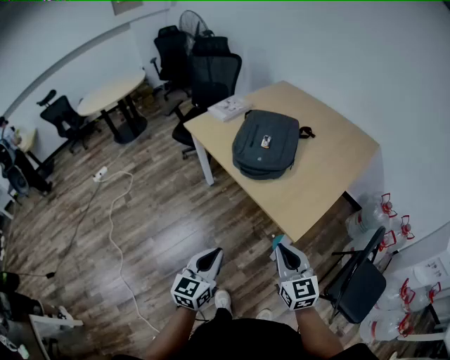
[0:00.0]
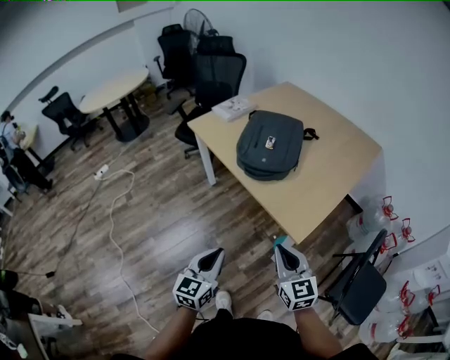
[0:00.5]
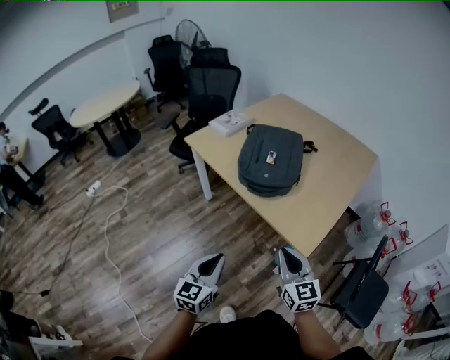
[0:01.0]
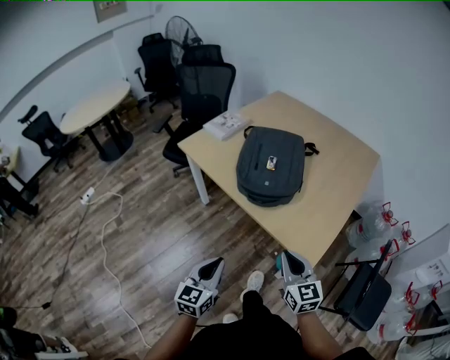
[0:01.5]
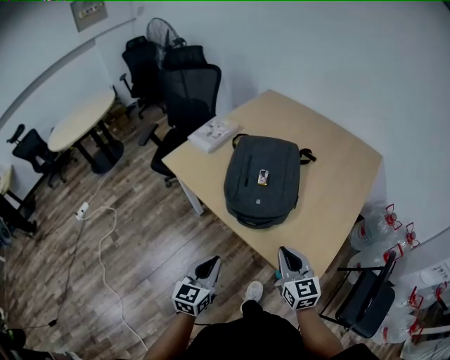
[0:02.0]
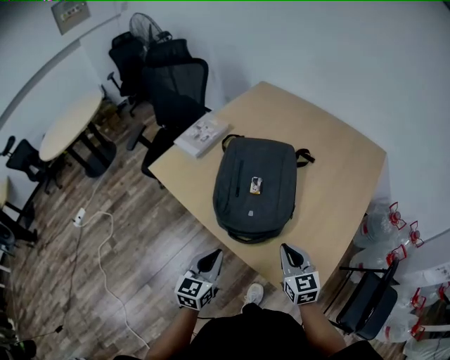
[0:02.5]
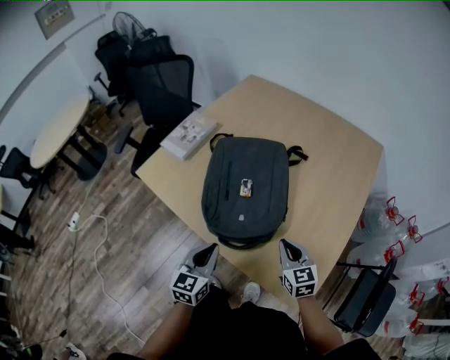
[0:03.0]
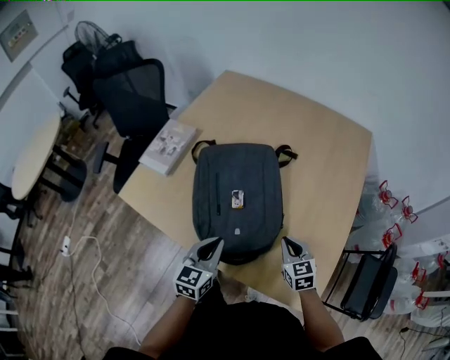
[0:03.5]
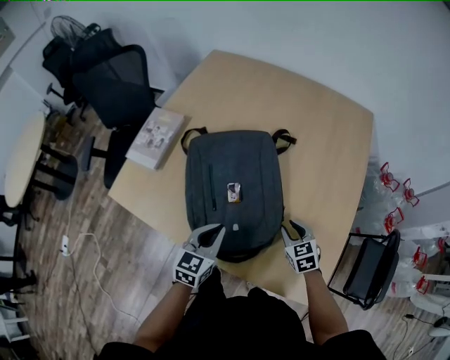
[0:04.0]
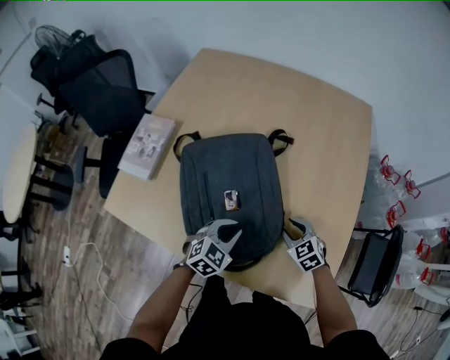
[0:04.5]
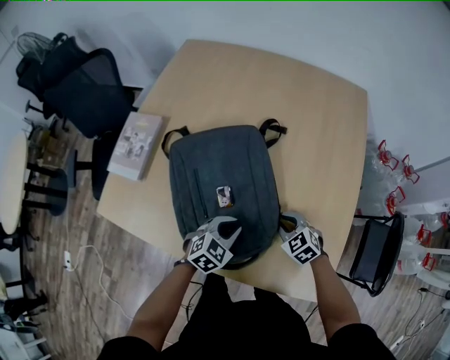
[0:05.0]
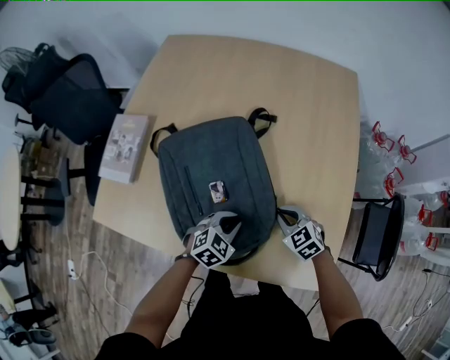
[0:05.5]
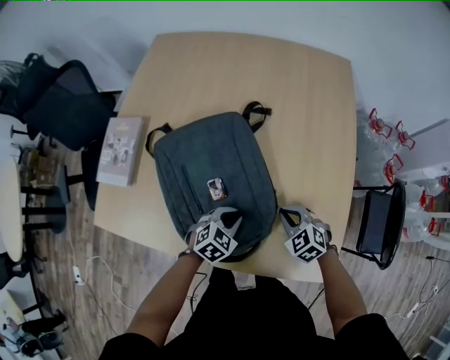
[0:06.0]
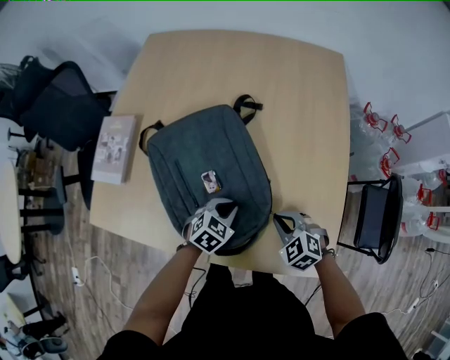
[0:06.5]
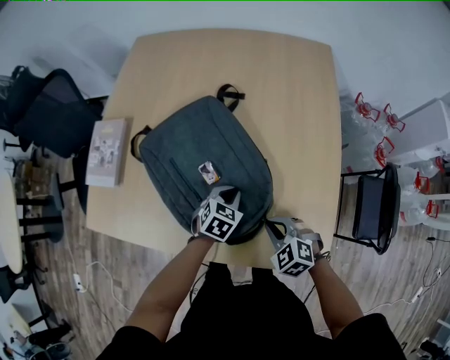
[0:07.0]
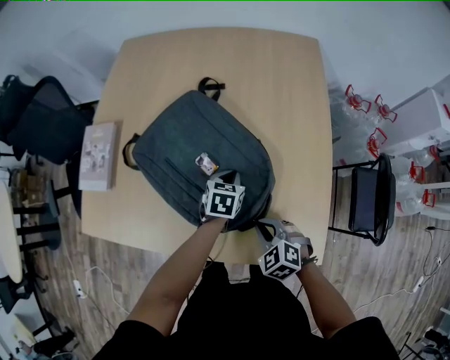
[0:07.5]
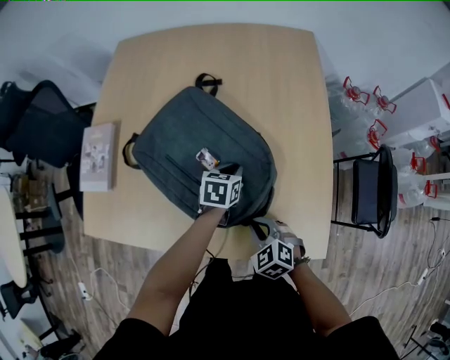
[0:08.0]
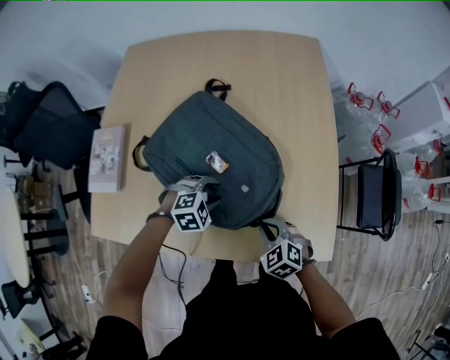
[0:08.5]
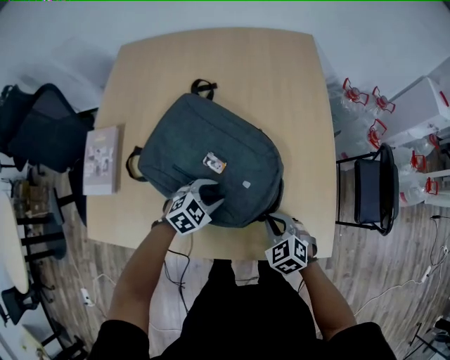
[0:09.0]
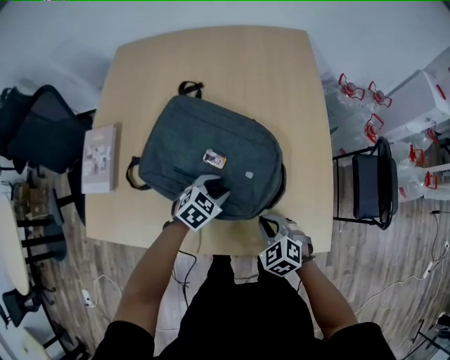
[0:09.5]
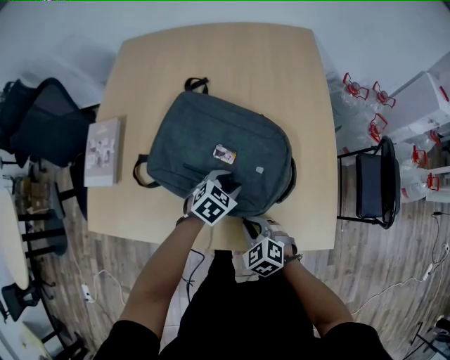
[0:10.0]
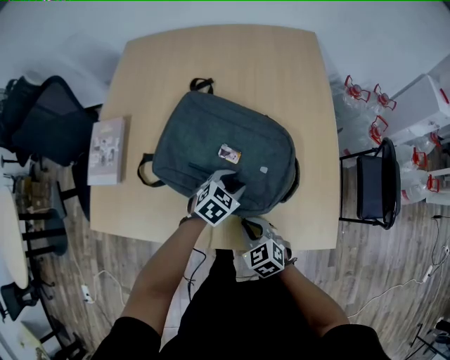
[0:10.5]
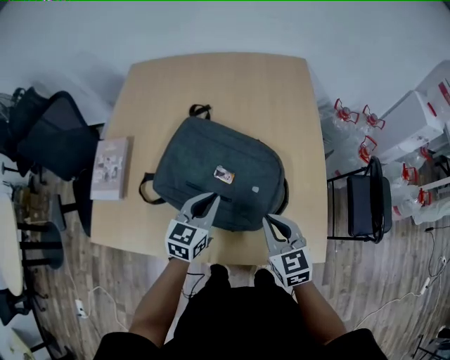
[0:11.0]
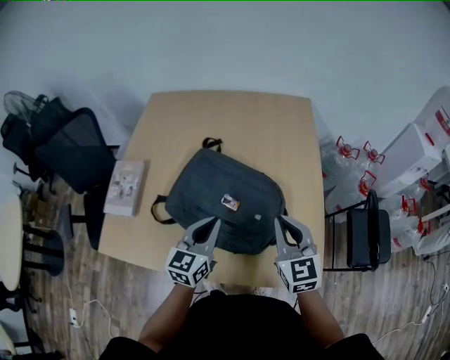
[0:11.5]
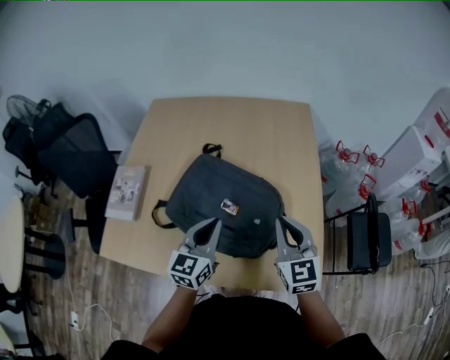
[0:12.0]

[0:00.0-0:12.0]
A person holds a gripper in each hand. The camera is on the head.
0:00.0 to 0:02.0: The grippers both shift forward by roughly 25 cm.
0:02.0 to 0:04.0: The right gripper travels forward and downward by about 25 cm, tilts its fingers some 30 degrees downward, and opens. The left gripper travels forward by some 30 cm, and turns by roughly 30 degrees.
0:04.0 to 0:06.0: The right gripper closes up. Meanwhile the left gripper is displaced downward and to the right by roughly 15 cm, and swivels approximately 50 degrees.
0:06.0 to 0:08.0: The right gripper travels backward by about 10 cm, while the left gripper travels forward and to the right by some 10 cm, and swivels approximately 30 degrees.
0:08.0 to 0:10.0: The left gripper goes some 10 cm backward, rotates roughly 40 degrees, and opens its fingers; the right gripper shifts by approximately 5 cm.
0:10.0 to 0:12.0: The right gripper travels upward and forward by approximately 30 cm, and points its fingers some 40 degrees further upward; the left gripper moves upward, approximately 20 cm, tips its fingers upward by roughly 40 degrees, and closes up.

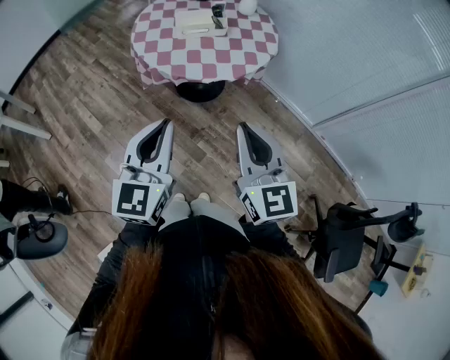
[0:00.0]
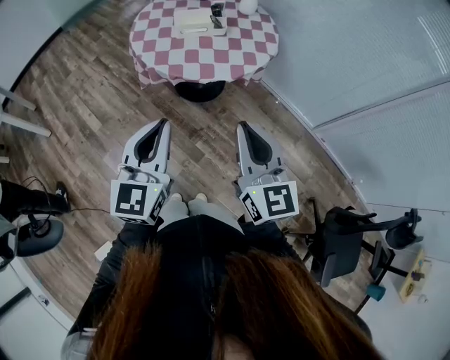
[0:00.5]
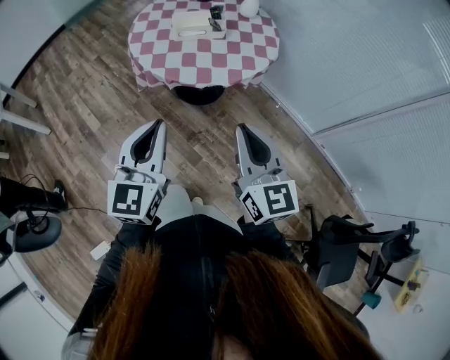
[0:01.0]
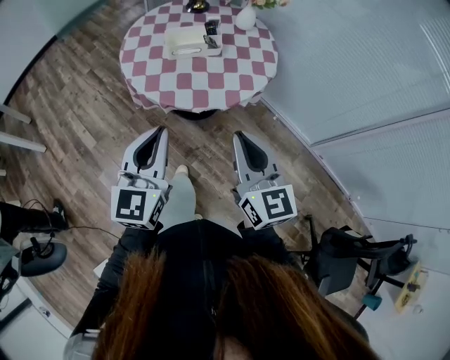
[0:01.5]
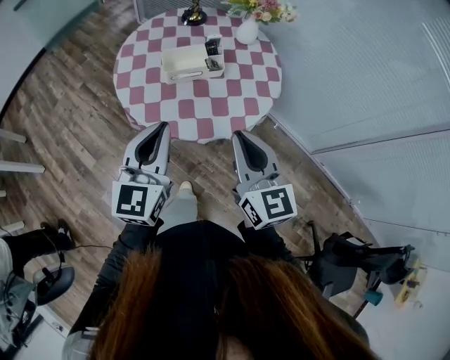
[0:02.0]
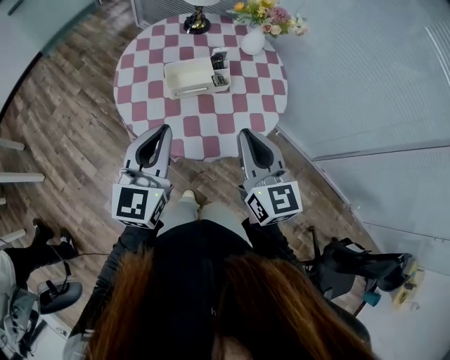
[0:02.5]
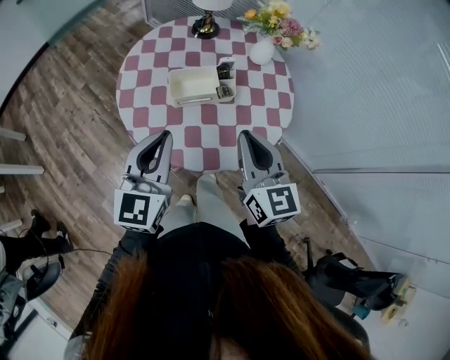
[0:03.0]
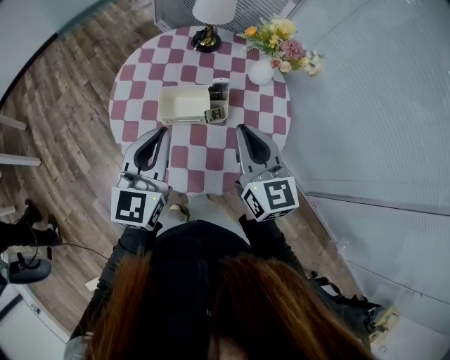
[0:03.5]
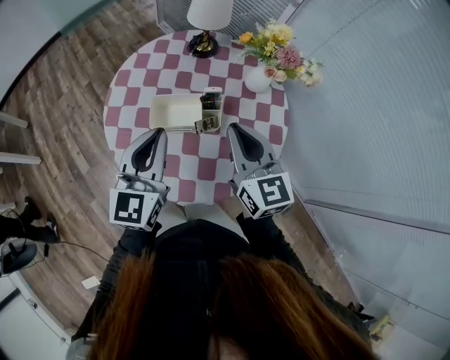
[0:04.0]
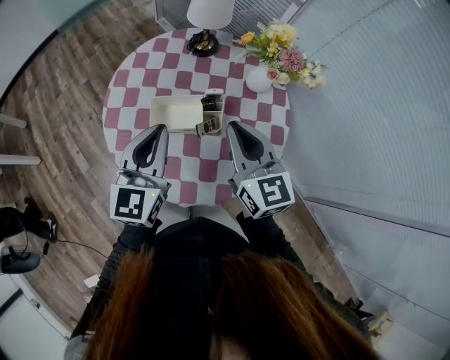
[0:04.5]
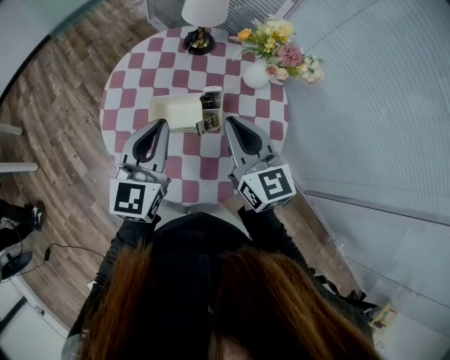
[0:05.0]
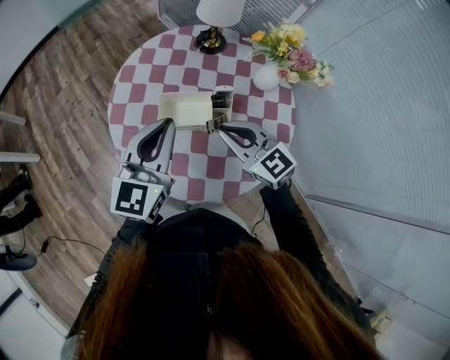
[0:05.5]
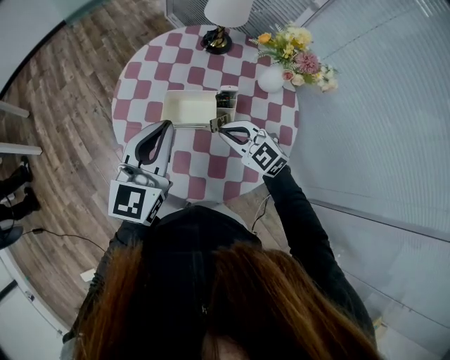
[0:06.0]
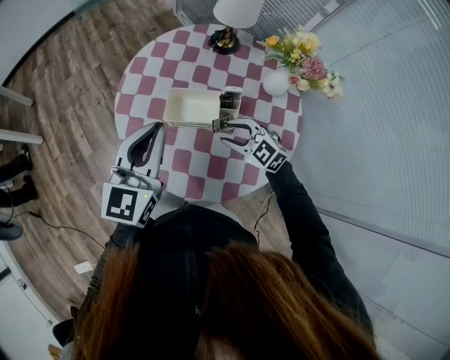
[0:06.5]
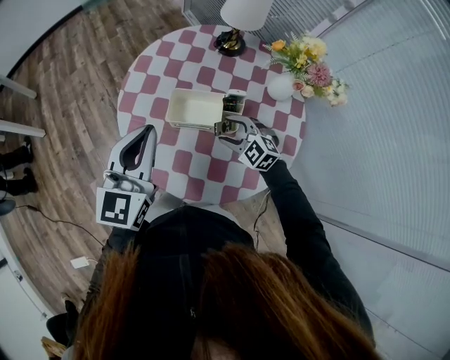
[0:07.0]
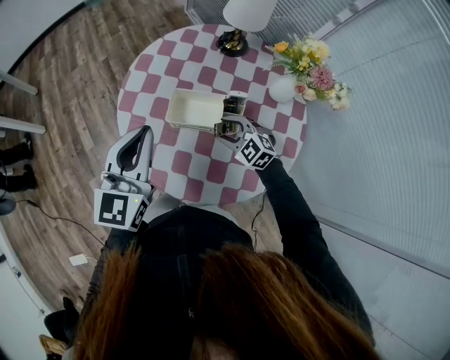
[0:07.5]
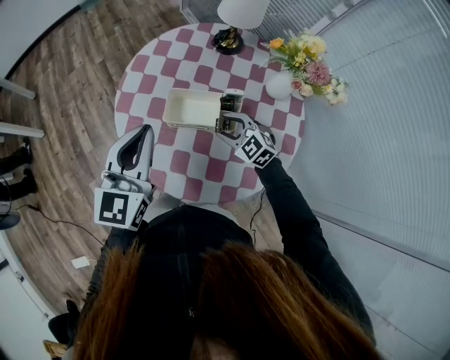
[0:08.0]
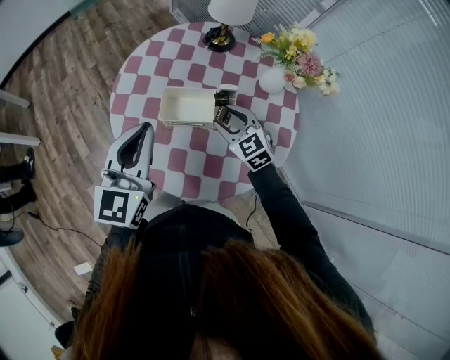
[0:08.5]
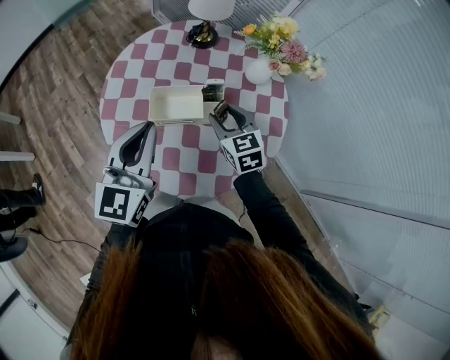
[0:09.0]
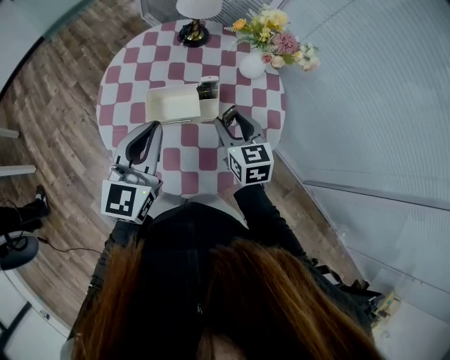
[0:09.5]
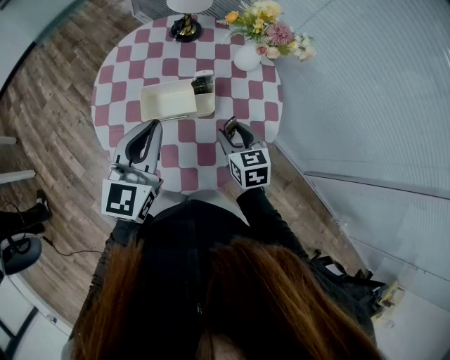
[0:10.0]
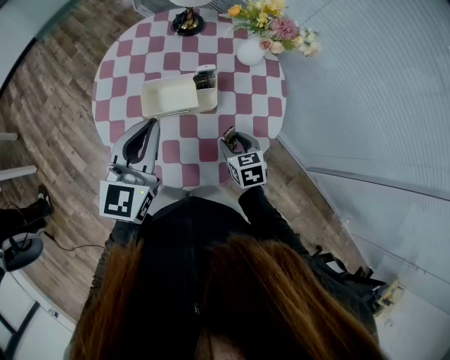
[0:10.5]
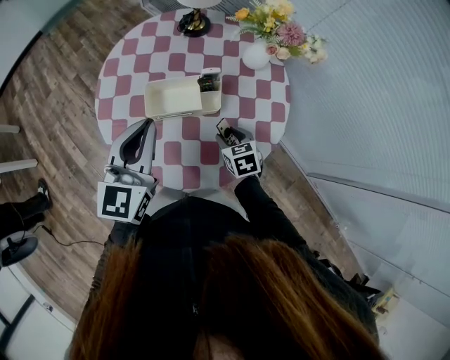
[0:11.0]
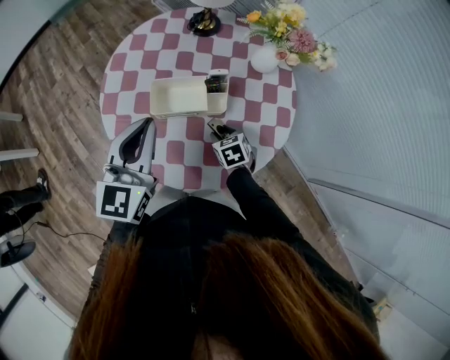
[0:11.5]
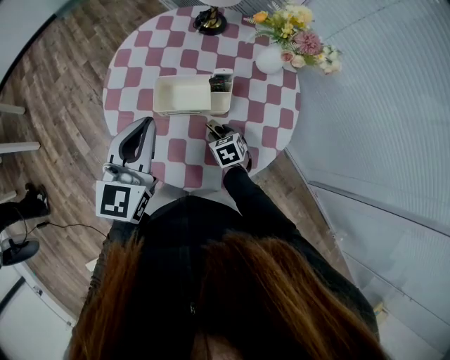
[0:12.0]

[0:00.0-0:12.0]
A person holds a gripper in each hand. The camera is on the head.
0:00.0 to 0:02.0: The two grippers go about 25 cm forward.
0:02.0 to 0:04.0: The two grippers go roughly 25 cm forward.
0:04.0 to 0:06.0: The right gripper heads downward, covering some 15 cm, and changes its angle by about 50 degrees.
0:06.0 to 0:08.0: The right gripper is displaced downward by approximately 5 cm, and opens.
0:08.0 to 0:10.0: The left gripper moves roughly 5 cm; the right gripper moves some 10 cm, and twists about 50 degrees clockwise, seen from behind.
0:10.0 to 0:12.0: The right gripper heads downward, covering approximately 15 cm, and rotates approximately 30 degrees.

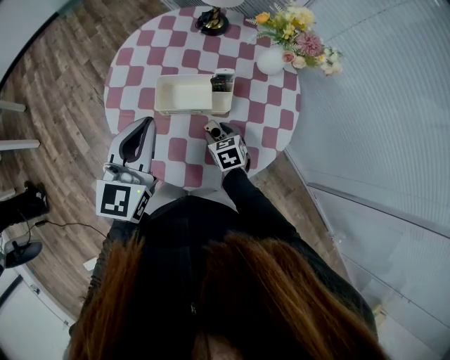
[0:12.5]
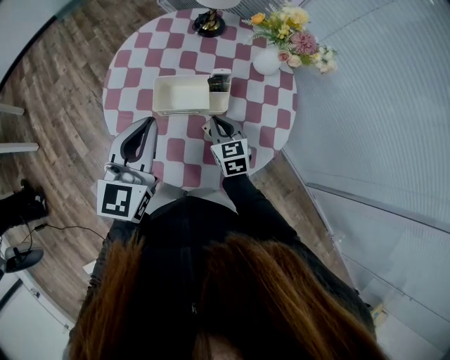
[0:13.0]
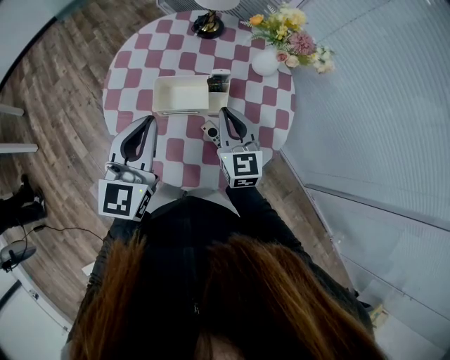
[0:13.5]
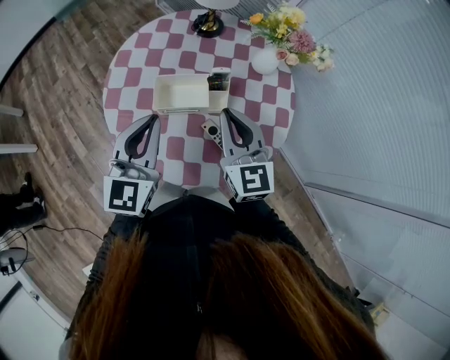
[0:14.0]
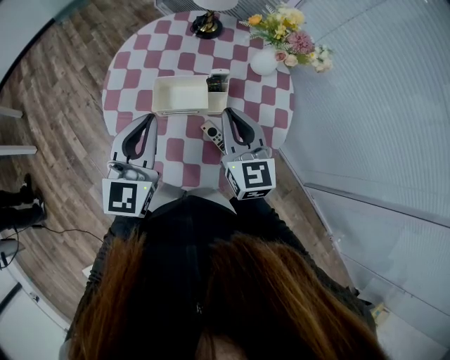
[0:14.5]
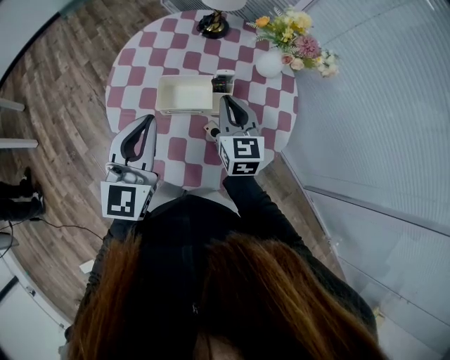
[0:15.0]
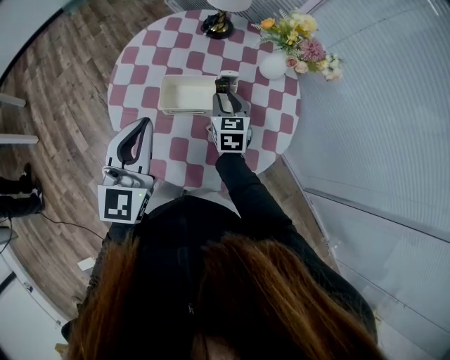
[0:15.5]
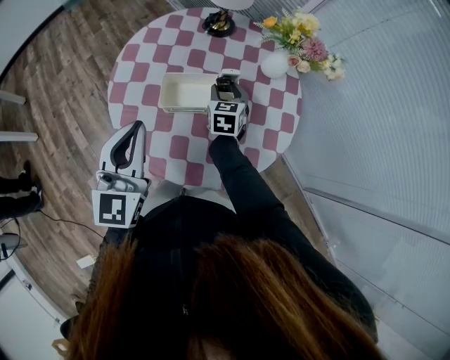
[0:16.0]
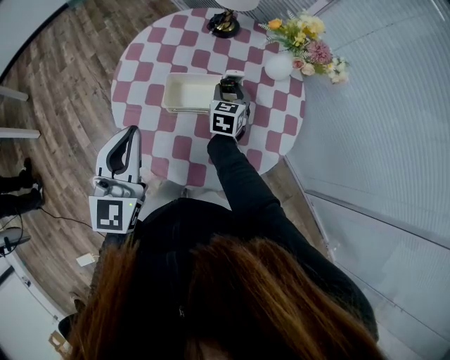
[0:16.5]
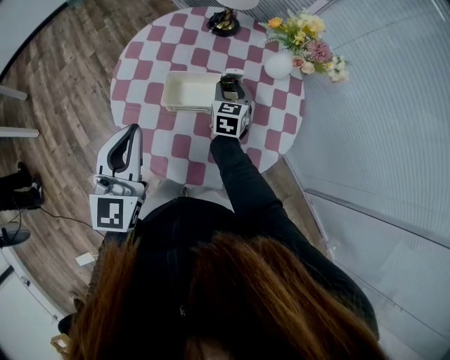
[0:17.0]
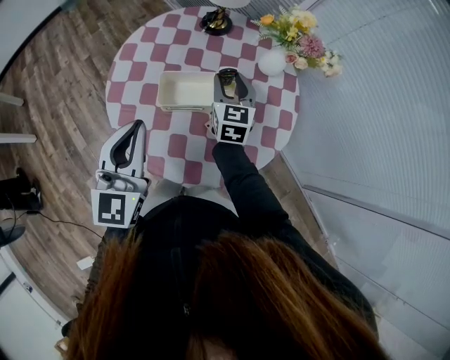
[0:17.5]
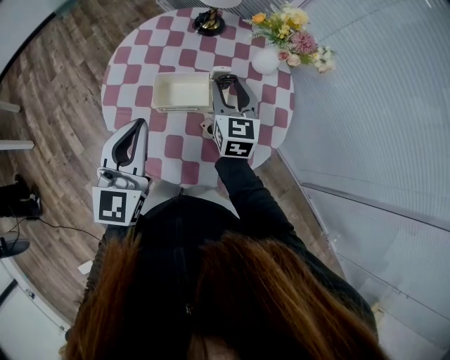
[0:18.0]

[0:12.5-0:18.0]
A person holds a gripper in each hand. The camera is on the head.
0:12.5 to 0:14.5: The right gripper travels upward by about 25 cm, tips its fingers upward by roughly 40 degrees, and closes its fingers.
0:14.5 to 0:16.0: The right gripper goes some 20 cm downward and forward, swivels roughly 30 degrees, and opens up.
0:16.0 to 0:18.0: The right gripper goes roughly 10 cm upward.
